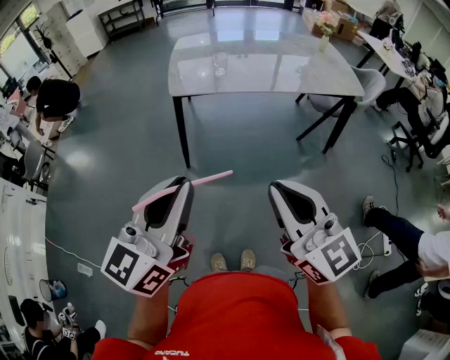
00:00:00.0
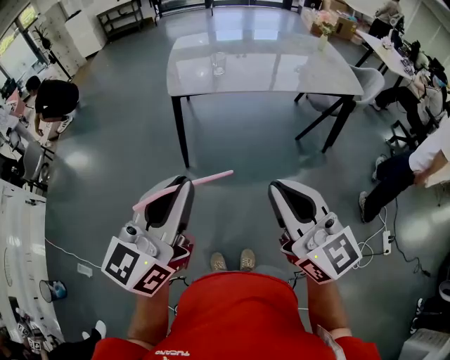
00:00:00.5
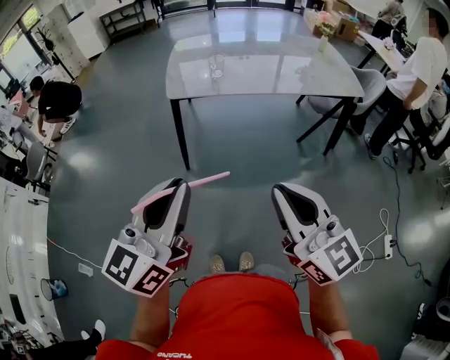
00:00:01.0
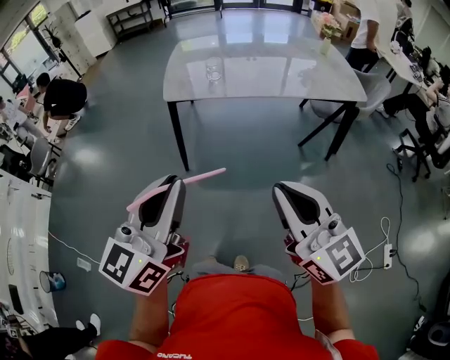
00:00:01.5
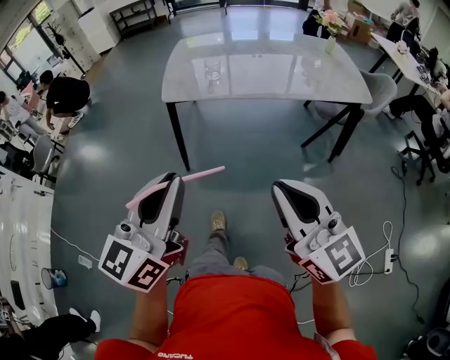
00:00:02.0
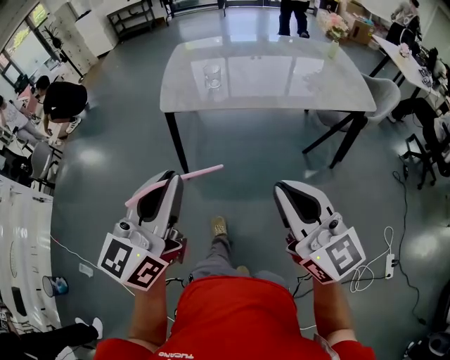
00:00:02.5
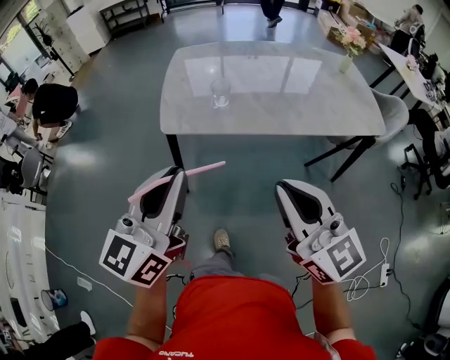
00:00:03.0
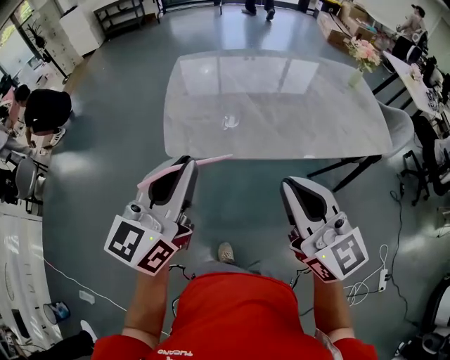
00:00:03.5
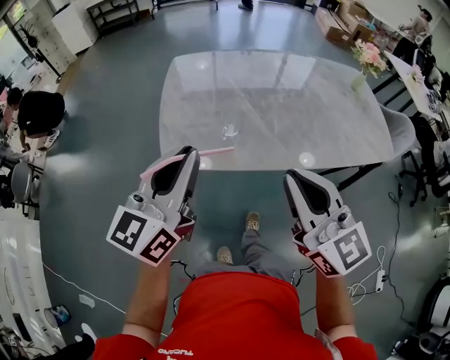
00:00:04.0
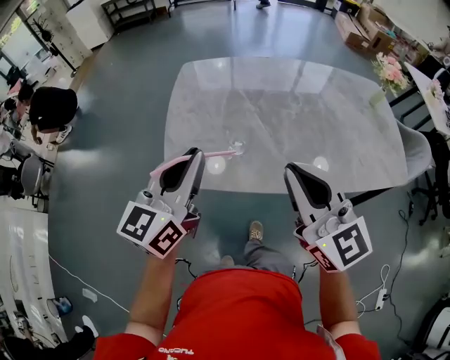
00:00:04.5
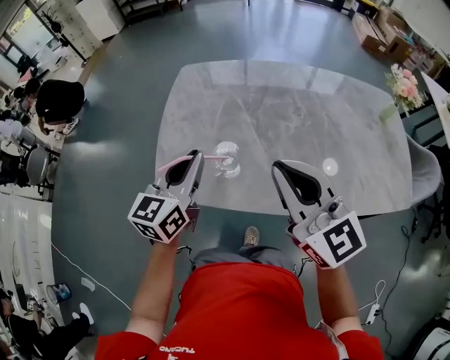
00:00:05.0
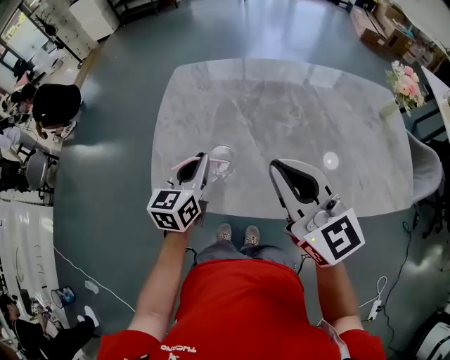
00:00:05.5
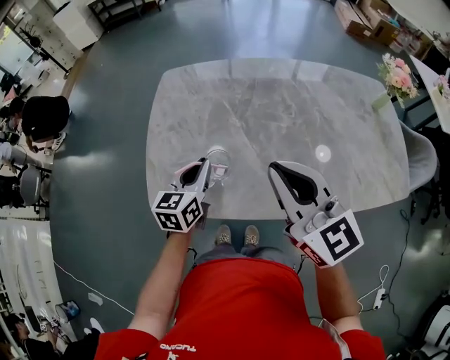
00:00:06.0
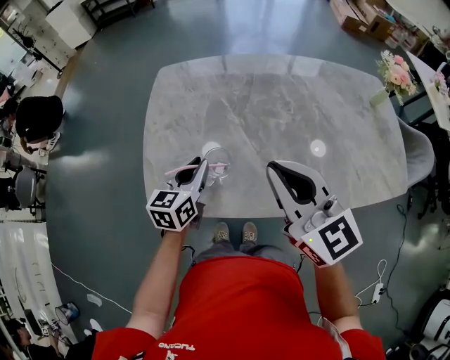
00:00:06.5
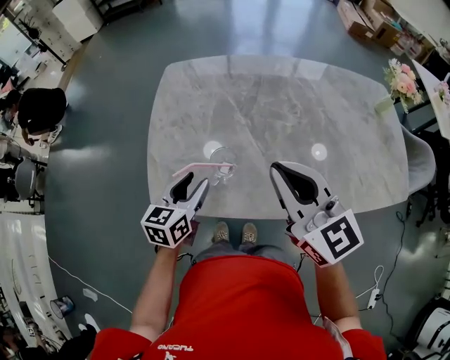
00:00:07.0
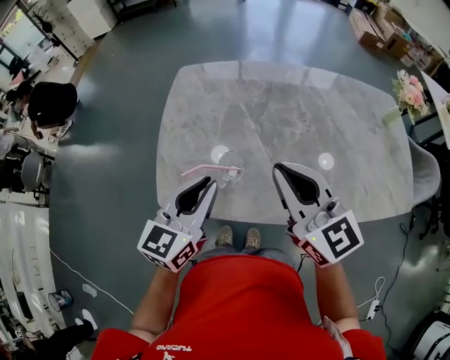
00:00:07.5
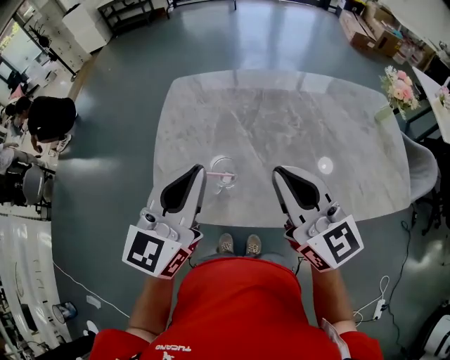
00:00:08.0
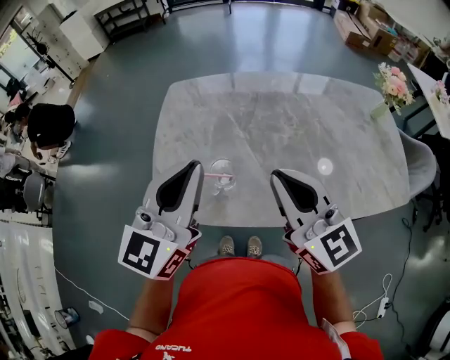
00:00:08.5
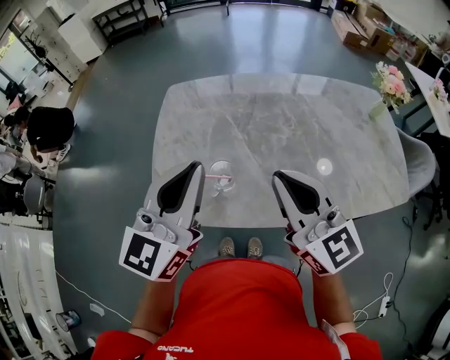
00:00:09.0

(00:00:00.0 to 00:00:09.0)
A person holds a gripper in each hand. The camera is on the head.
00:00:00.0 - 00:00:02.0: The grippers both shift to the right by about 10 cm.
00:00:02.0 - 00:00:04.5: Both grippers are carried forward, about 50 cm.
00:00:04.5 - 00:00:07.0: The left gripper goes approximately 20 cm downward and forward, swivels about 30 degrees, and opens; the right gripper heads forward, covering some 10 cm.
00:00:07.0 - 00:00:09.0: The left gripper heads upward, covering approximately 25 cm, turns by some 40 degrees, and closes its fingers.

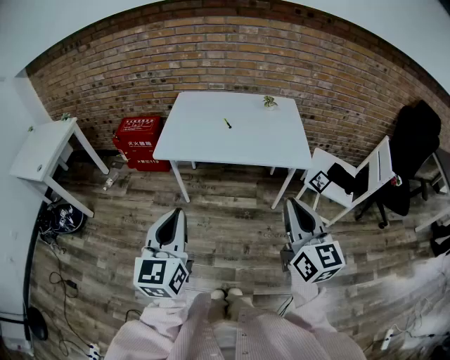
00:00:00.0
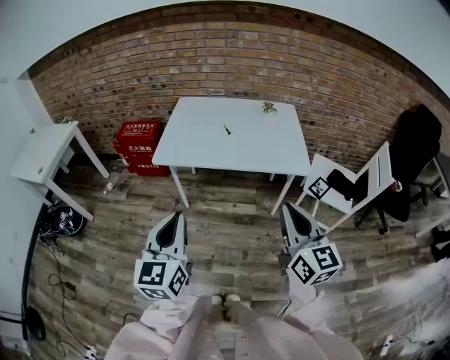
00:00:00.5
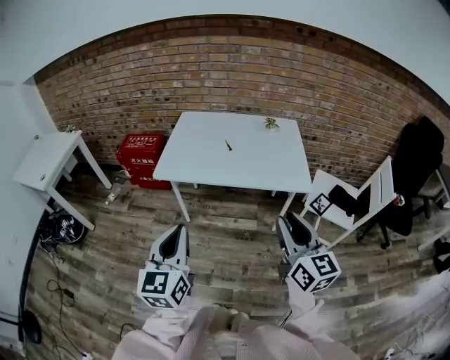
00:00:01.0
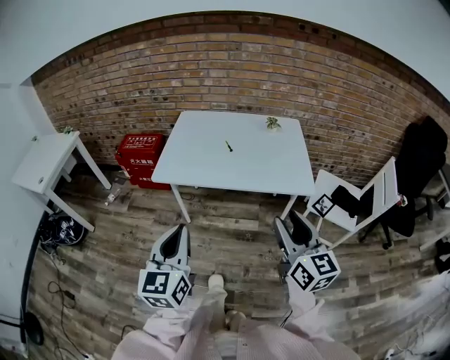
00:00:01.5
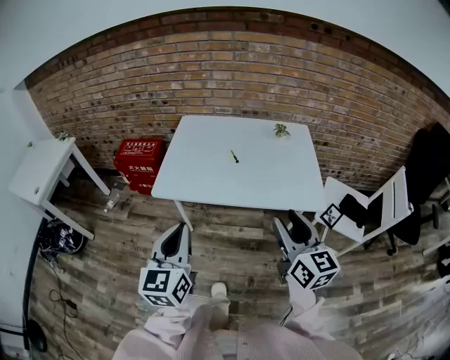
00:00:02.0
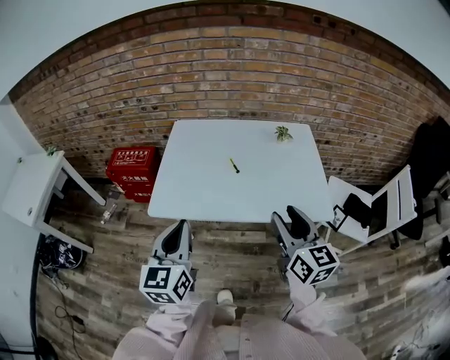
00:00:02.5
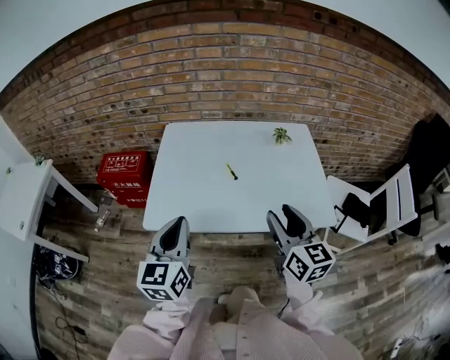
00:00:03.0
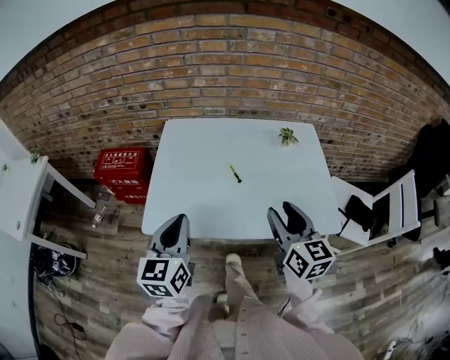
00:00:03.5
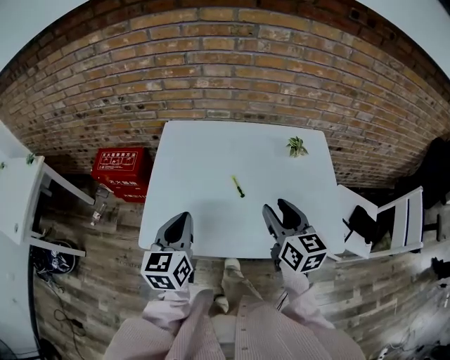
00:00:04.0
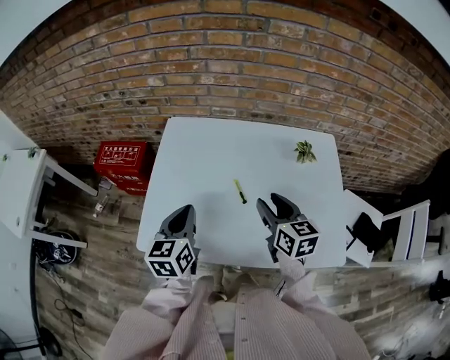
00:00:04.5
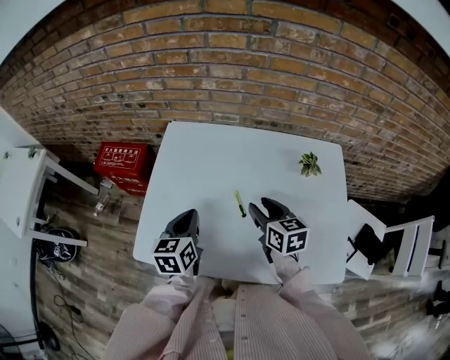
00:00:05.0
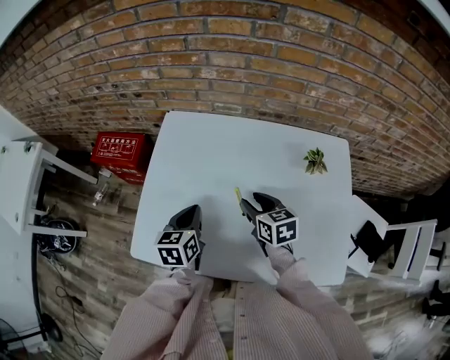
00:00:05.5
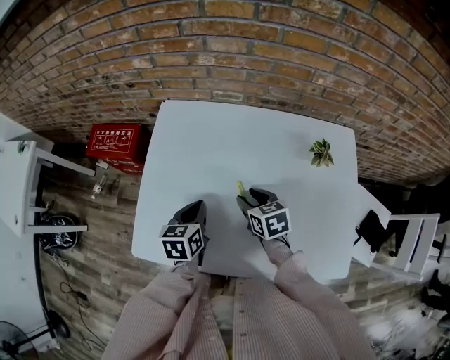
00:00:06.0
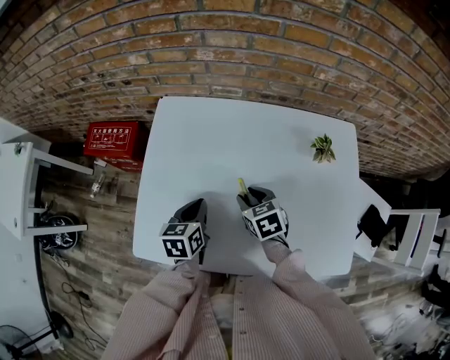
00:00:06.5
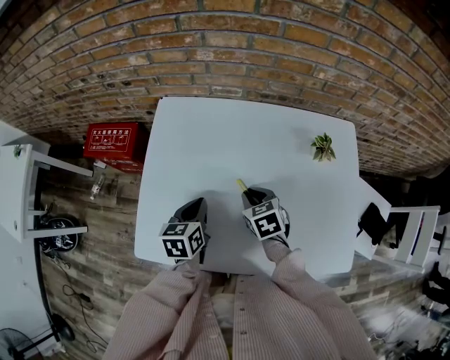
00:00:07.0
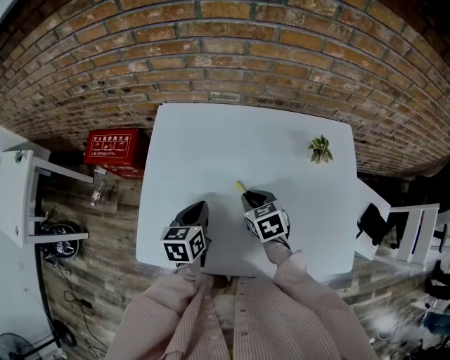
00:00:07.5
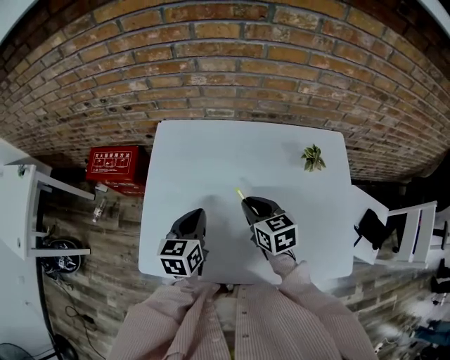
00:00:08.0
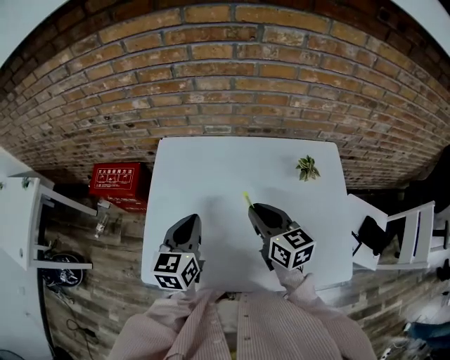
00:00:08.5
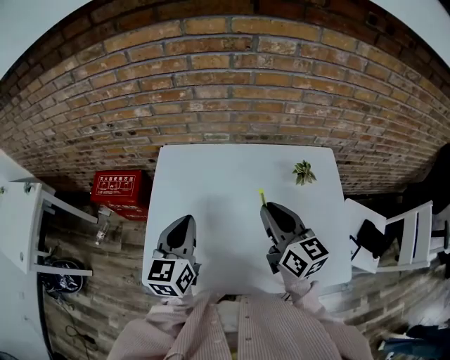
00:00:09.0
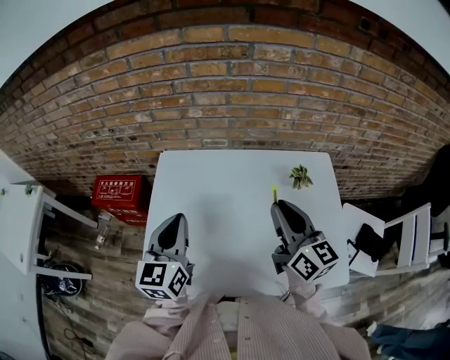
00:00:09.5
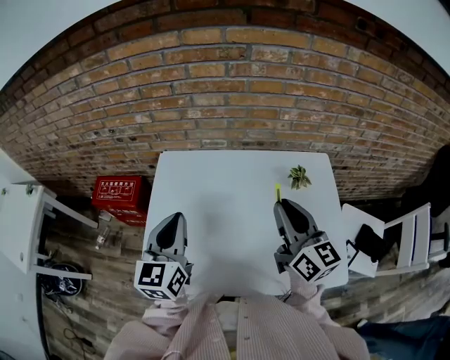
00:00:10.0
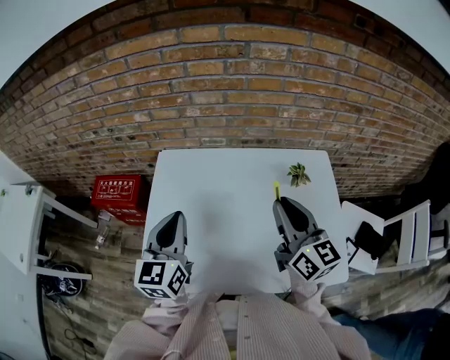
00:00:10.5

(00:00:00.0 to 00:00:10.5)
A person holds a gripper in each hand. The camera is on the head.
00:00:00.0 - 00:00:02.0: Both grippers travel together forward, approximately 15 cm. The right gripper opens.
00:00:02.0 - 00:00:04.0: The two grippers go roughly 30 cm forward.
00:00:04.0 - 00:00:06.5: Both grippers travel together downward and forward, roughly 25 cm. The left gripper changes its angle by roughly 30 degrees; the right gripper angles its fingers downward, by approximately 40 degrees.
00:00:06.5 - 00:00:08.5: Both grippers travel together upward, about 15 cm. The left gripper swivels some 20 degrees; the right gripper tilts its fingers approximately 30 degrees upward, and closes up.
00:00:08.5 - 00:00:10.5: The left gripper moves upward, approximately 10 cm. The right gripper moves upward and to the right, roughly 15 cm, and swivels approximately 20 degrees.

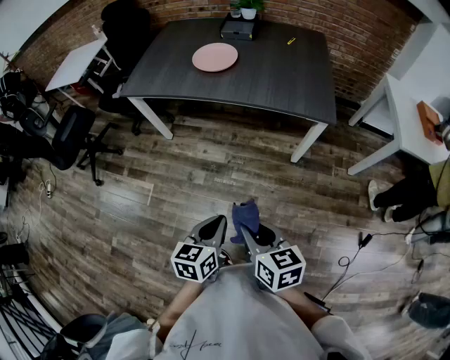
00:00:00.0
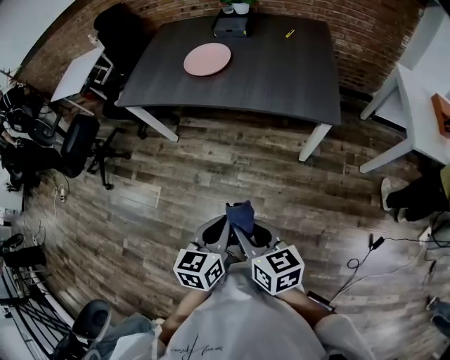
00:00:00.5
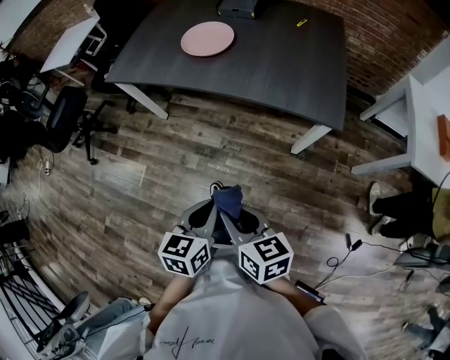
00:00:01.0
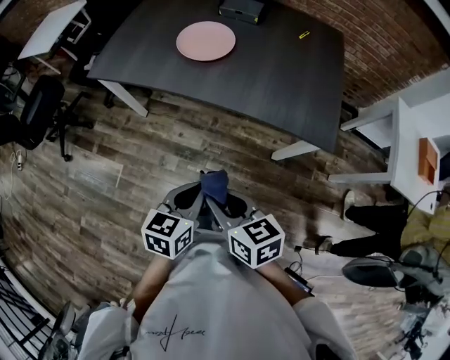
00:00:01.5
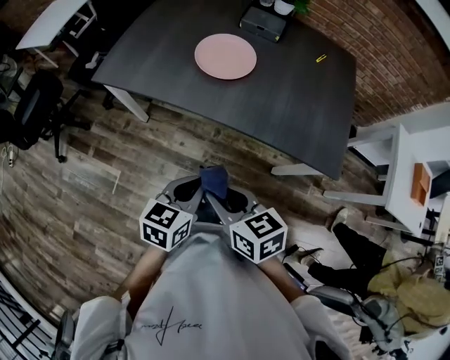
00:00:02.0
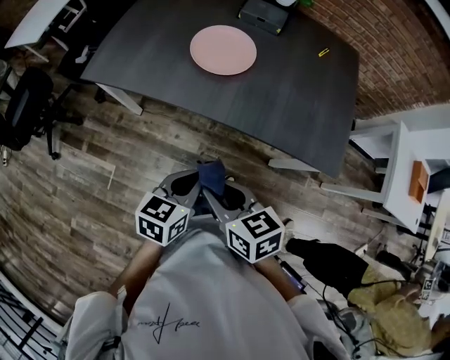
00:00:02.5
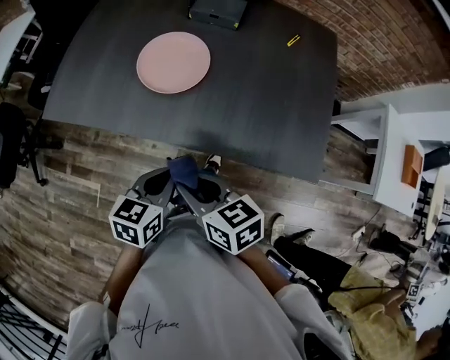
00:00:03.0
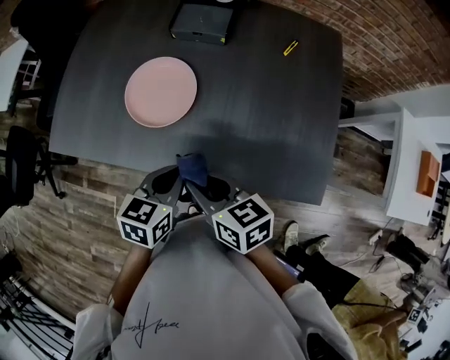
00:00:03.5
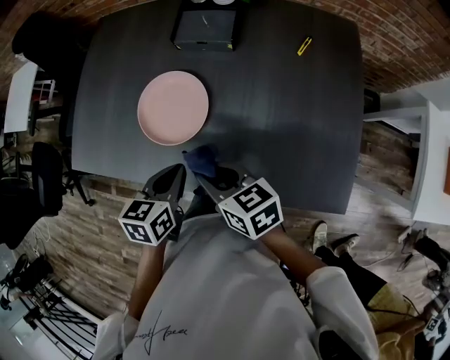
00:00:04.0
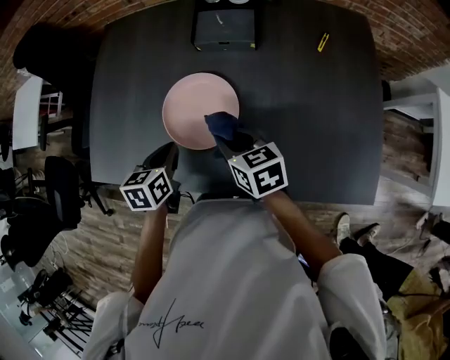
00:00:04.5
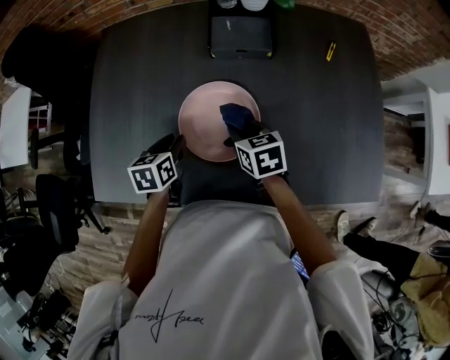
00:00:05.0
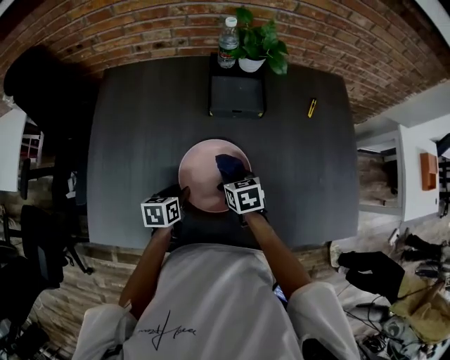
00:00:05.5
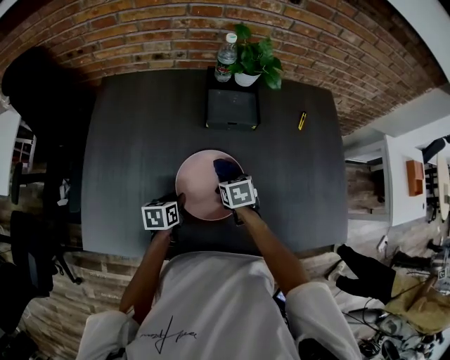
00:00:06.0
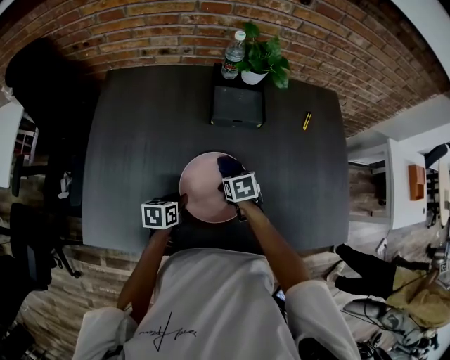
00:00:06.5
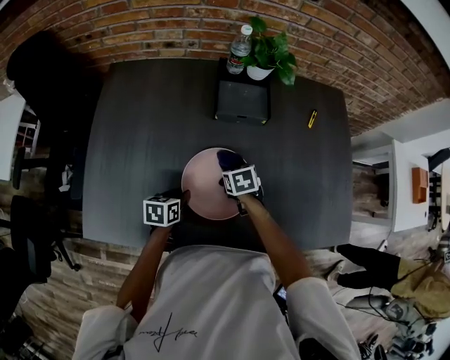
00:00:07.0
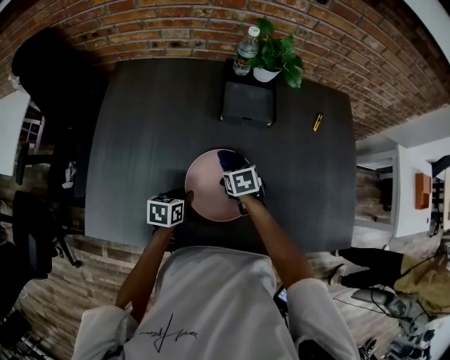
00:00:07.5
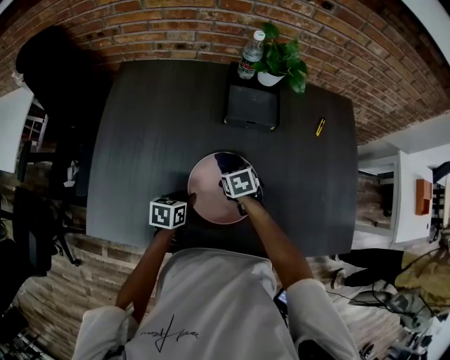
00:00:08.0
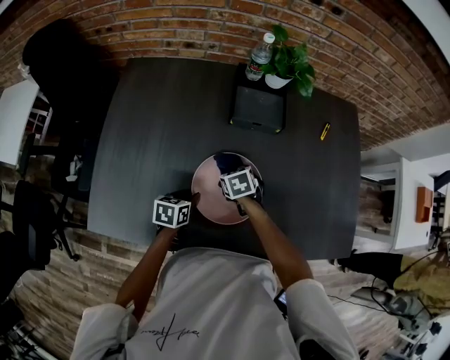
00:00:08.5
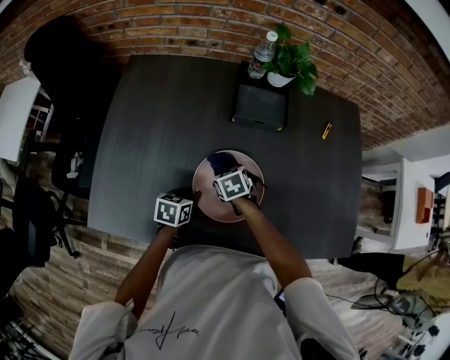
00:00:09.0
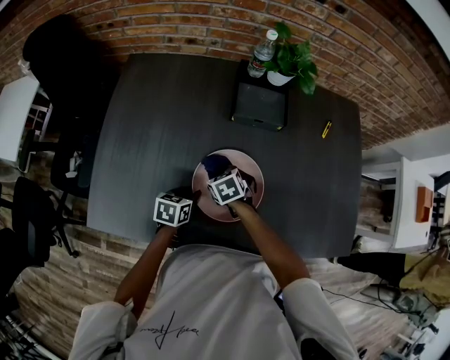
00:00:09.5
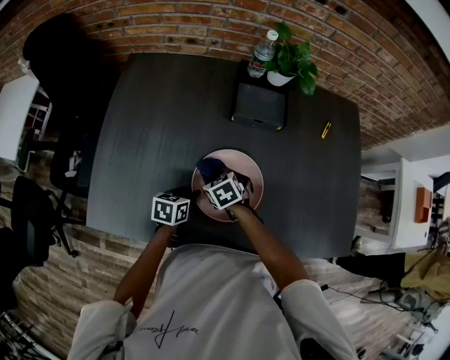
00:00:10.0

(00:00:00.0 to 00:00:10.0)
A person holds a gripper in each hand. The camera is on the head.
00:00:00.0 - 00:00:02.0: Both grippers travel together forward, some 35 cm.
00:00:02.0 - 00:00:04.0: The left gripper heads forward, covering about 30 cm. The right gripper moves forward and to the right, approximately 35 cm.
00:00:04.0 - 00:00:06.0: The right gripper changes place by some 25 cm, and angles its fingers downward, by roughly 30 degrees; the left gripper moves some 30 cm.
00:00:06.0 - 00:00:08.0: The grippers stay close to where they were, moving slightly.
00:00:08.0 - 00:00:10.0: The right gripper goes some 10 cm to the left.
